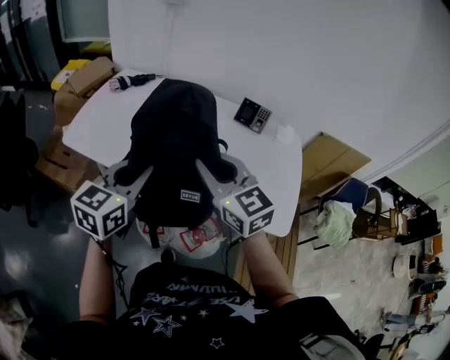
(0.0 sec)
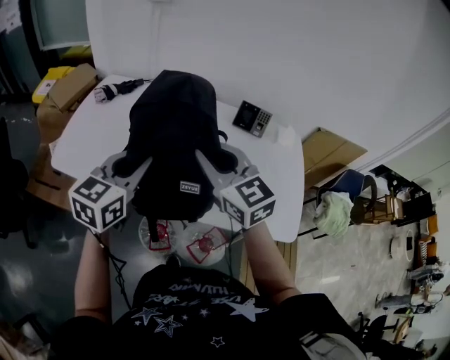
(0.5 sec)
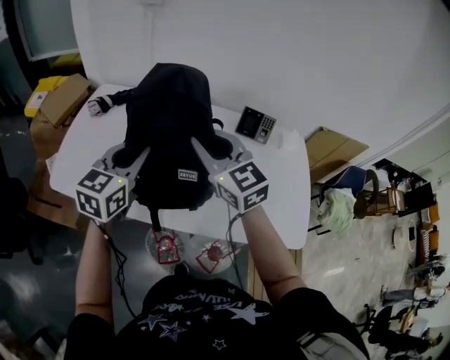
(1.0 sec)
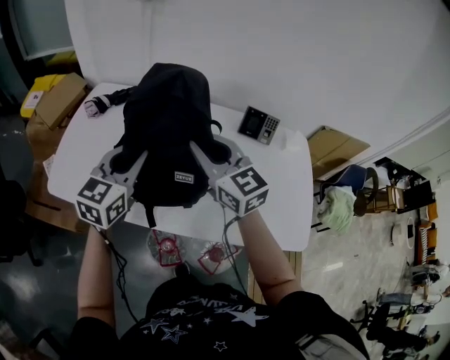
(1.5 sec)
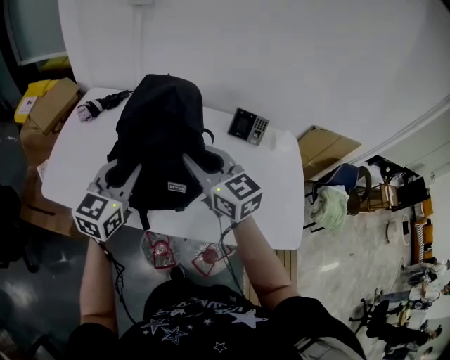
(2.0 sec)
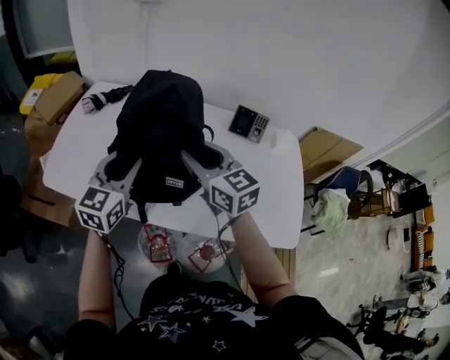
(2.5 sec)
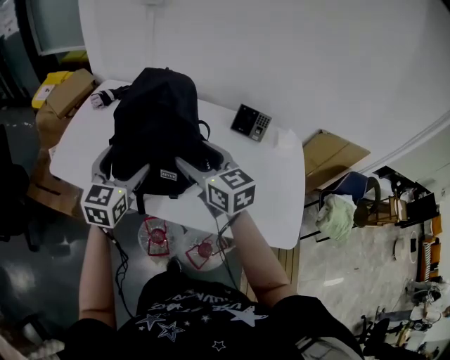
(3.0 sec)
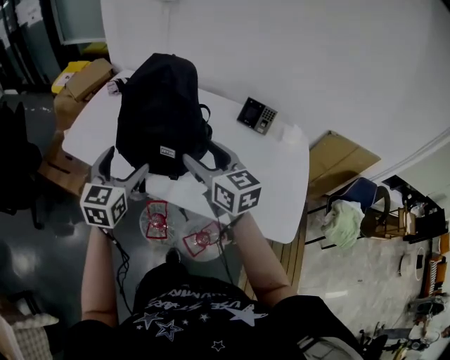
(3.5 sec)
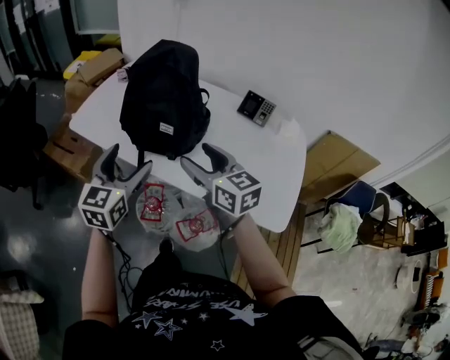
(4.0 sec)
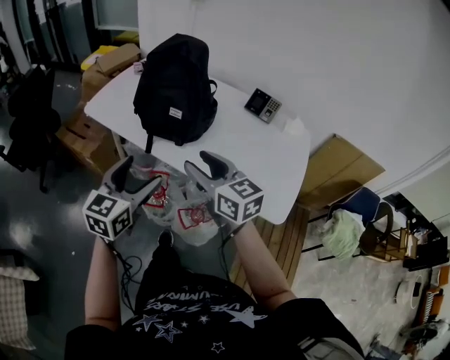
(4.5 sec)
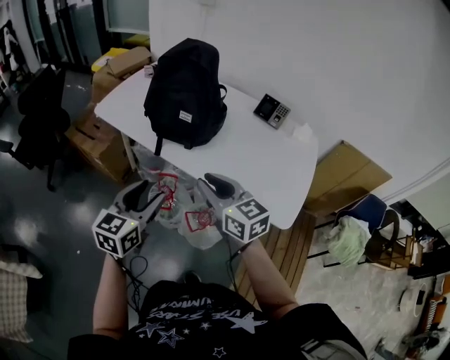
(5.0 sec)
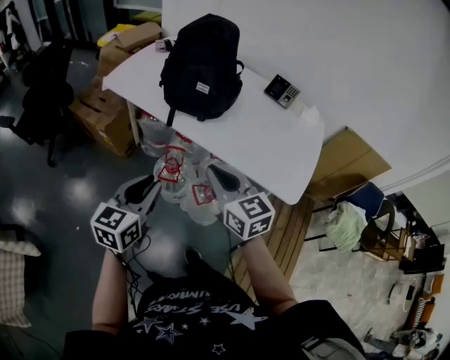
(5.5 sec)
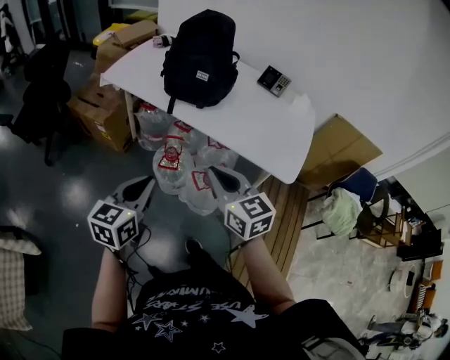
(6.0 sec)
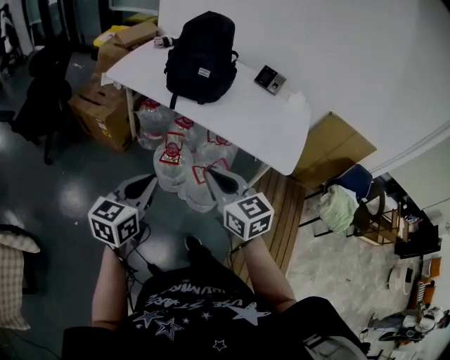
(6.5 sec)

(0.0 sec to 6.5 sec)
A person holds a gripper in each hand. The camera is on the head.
0.0 sec - 2.0 sec: Both grippers move forward, approximately 20 cm.
2.0 sec - 4.5 sec: Both grippers move backward, approximately 35 cm. The left gripper turns by roughly 20 degrees, and opens. Meanwhile the right gripper opens its fingers.
4.5 sec - 6.5 sec: Both grippers travel together backward, some 25 cm. The left gripper closes its fingers. Meanwhile the right gripper closes up.

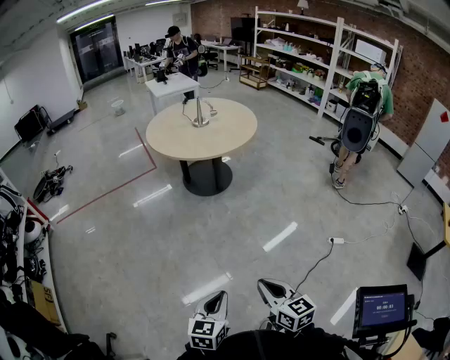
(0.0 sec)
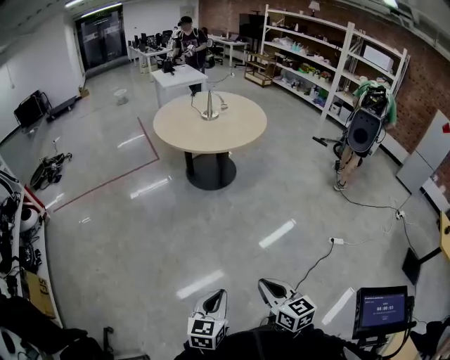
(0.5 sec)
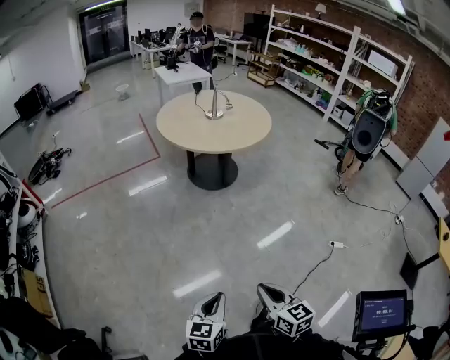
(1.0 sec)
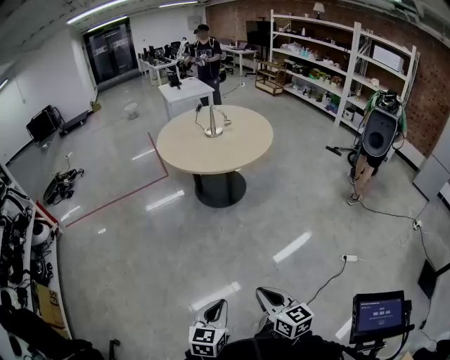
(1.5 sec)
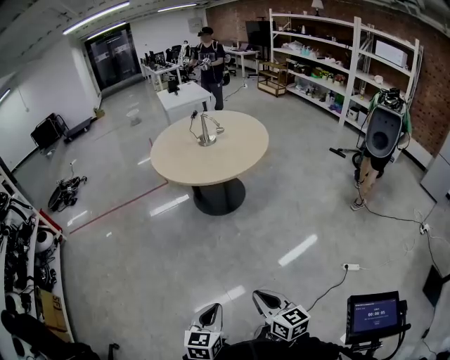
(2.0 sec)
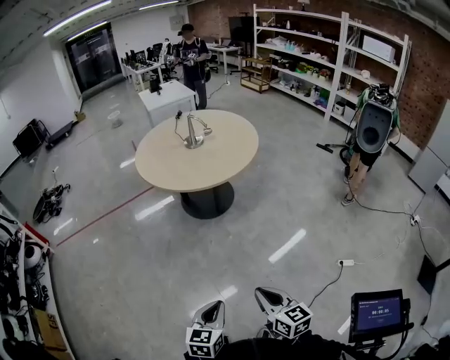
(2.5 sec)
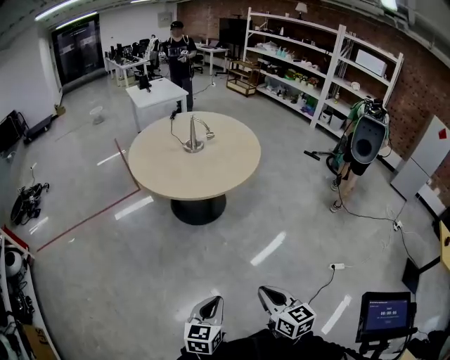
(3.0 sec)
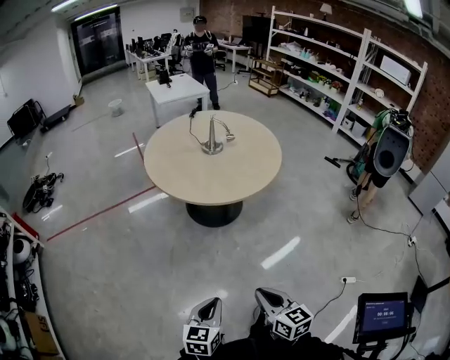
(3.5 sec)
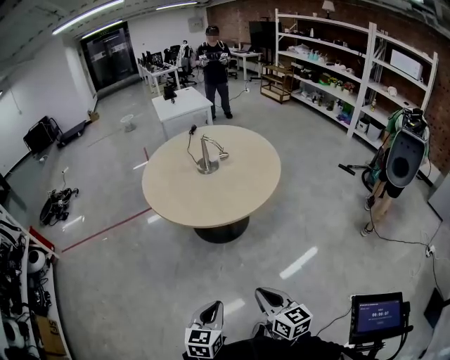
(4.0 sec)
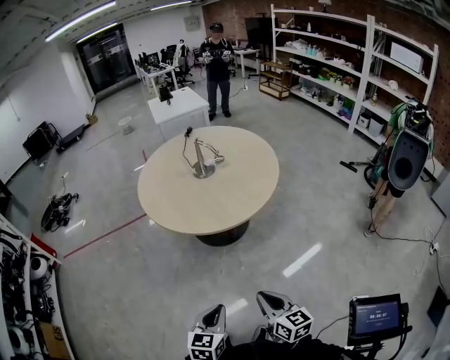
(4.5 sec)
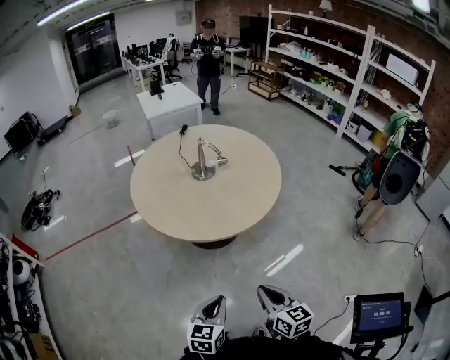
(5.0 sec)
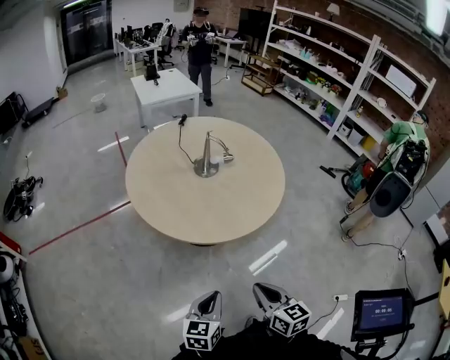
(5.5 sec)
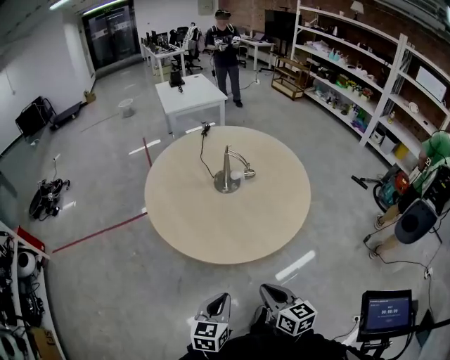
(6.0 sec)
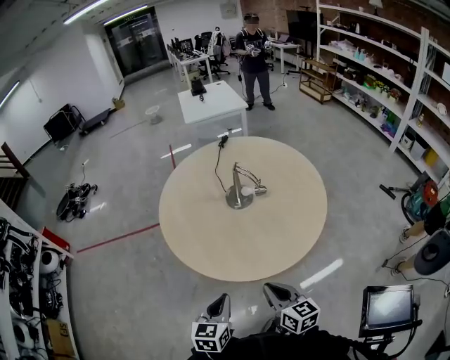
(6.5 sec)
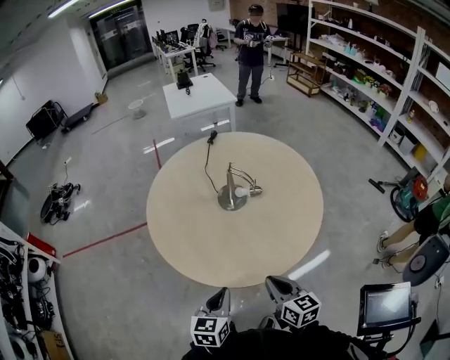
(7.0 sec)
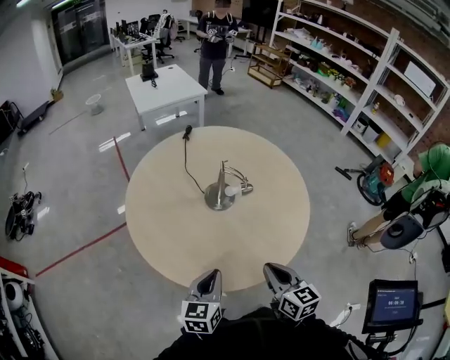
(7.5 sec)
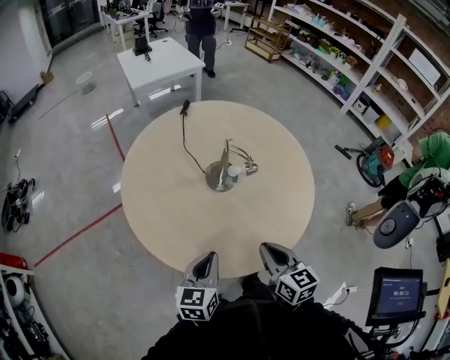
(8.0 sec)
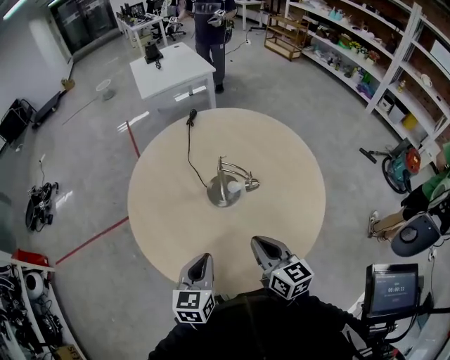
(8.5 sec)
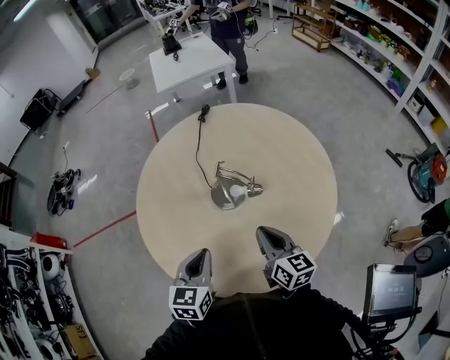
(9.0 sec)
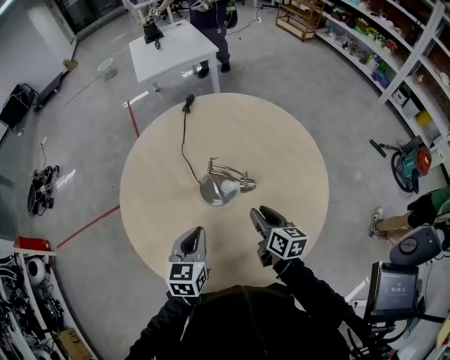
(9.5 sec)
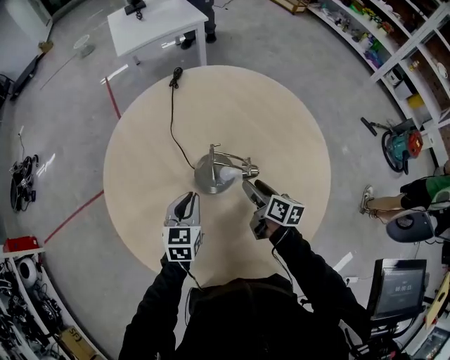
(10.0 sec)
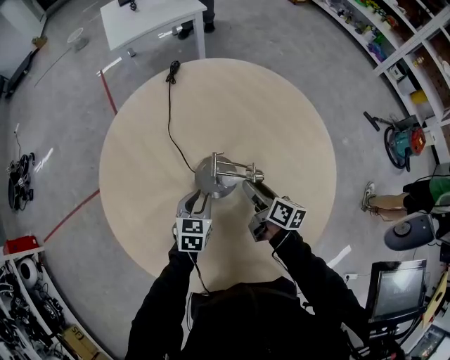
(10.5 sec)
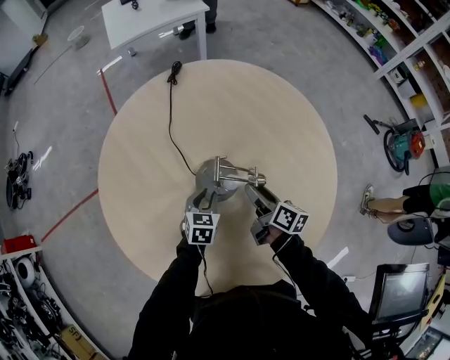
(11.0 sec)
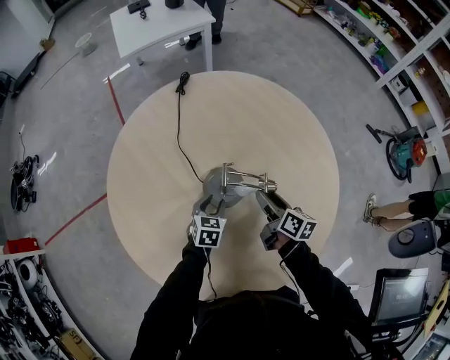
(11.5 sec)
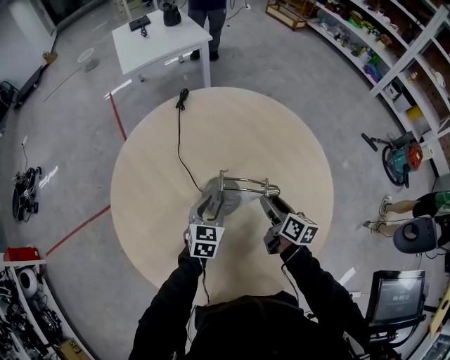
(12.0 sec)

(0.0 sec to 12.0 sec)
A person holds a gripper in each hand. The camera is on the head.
0.0 sec - 2.0 sec: The two grippers go about 15 cm forward and to the right.
2.0 sec - 4.0 sec: Both grippers travel together forward, about 30 cm.
4.0 sec - 6.0 sec: Both grippers move forward, approximately 25 cm.
6.0 sec - 8.0 sec: Both grippers travel together forward, some 25 cm.
8.0 sec - 10.0 sec: The left gripper shifts roughly 25 cm forward; the right gripper shifts roughly 35 cm forward and downward, changes its angle by about 30 degrees, and opens up.
10.0 sec - 12.0 sec: The left gripper is displaced to the right by approximately 5 cm, goes downward and returns, roughly 15 cm each way, and opens.

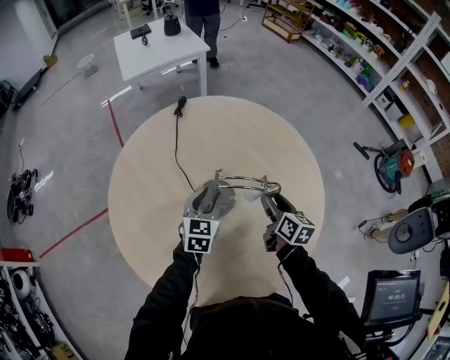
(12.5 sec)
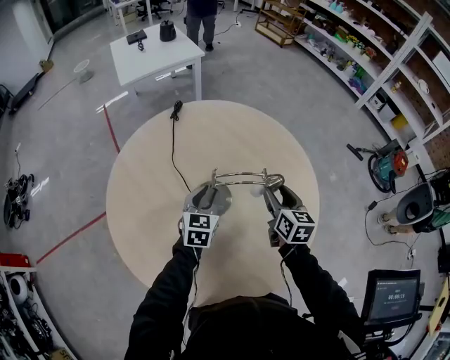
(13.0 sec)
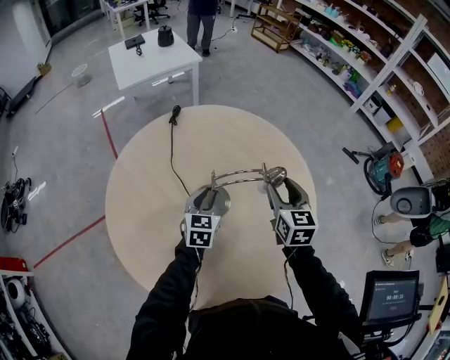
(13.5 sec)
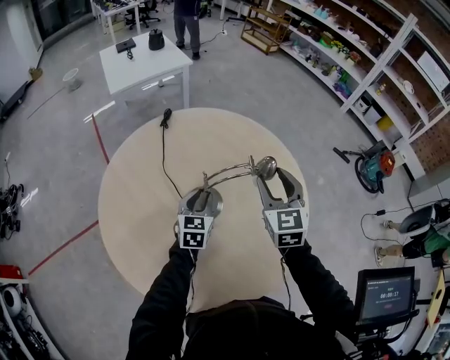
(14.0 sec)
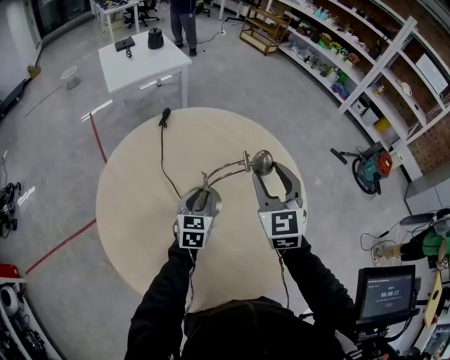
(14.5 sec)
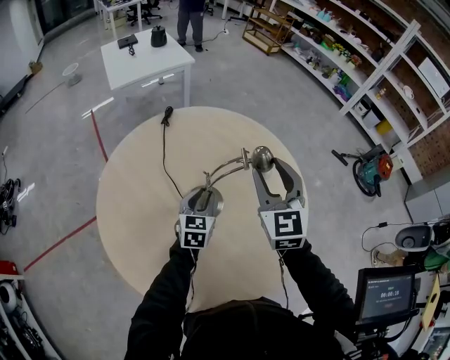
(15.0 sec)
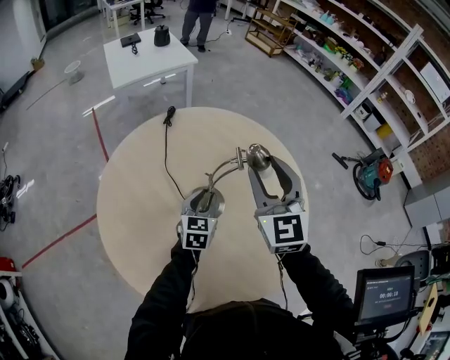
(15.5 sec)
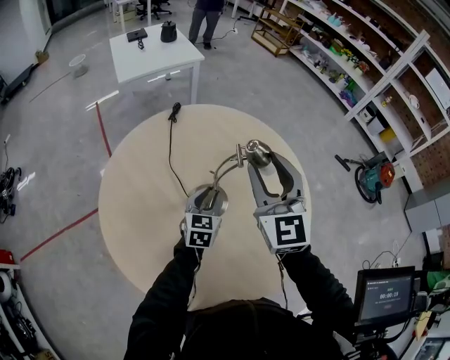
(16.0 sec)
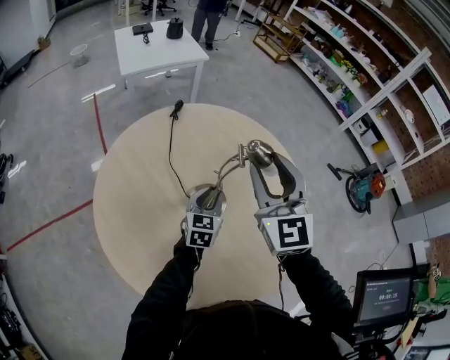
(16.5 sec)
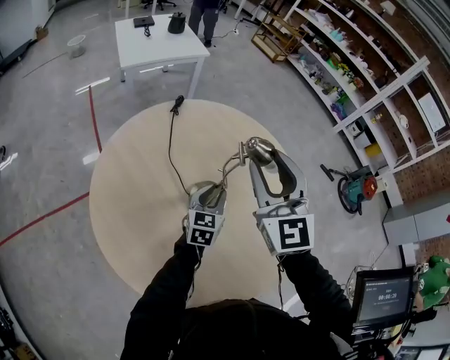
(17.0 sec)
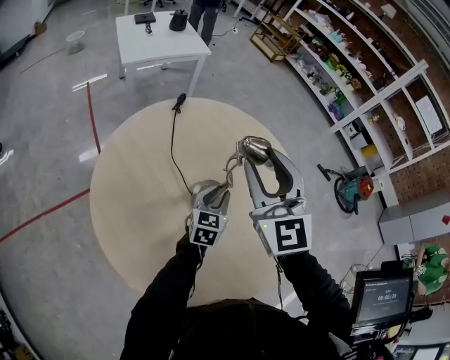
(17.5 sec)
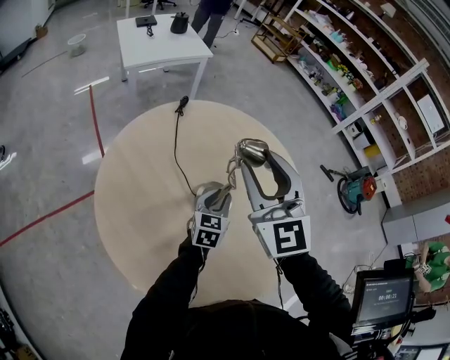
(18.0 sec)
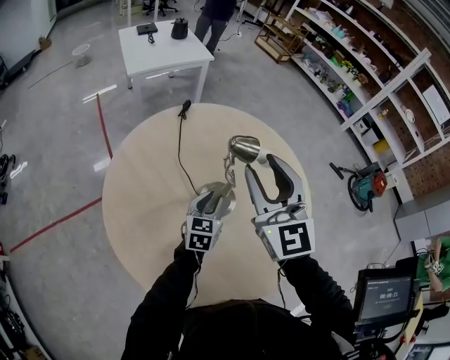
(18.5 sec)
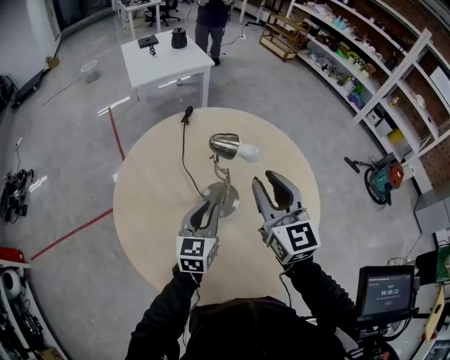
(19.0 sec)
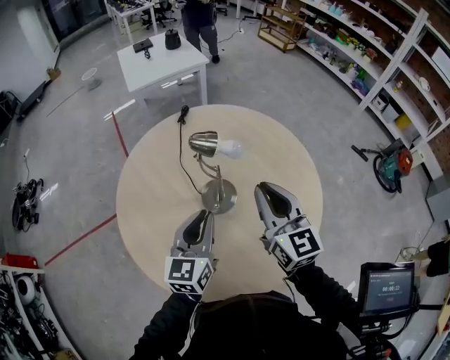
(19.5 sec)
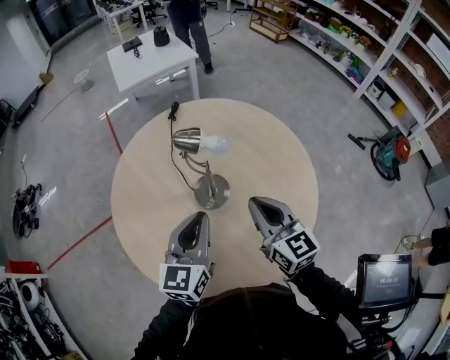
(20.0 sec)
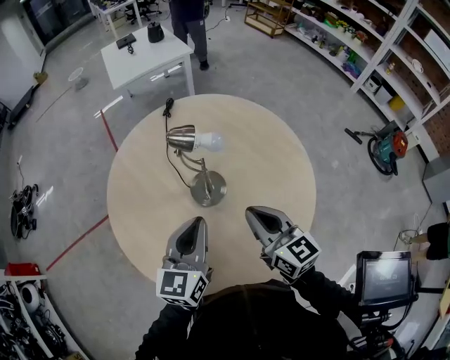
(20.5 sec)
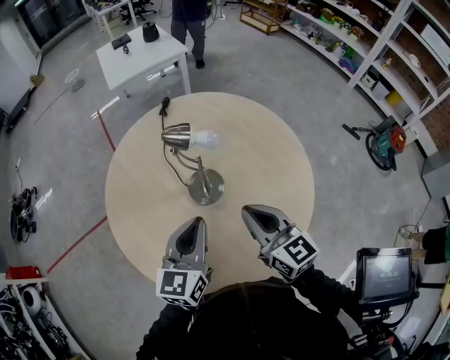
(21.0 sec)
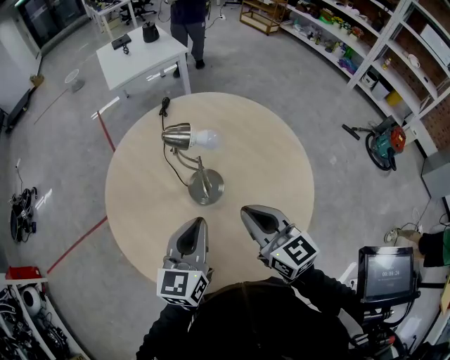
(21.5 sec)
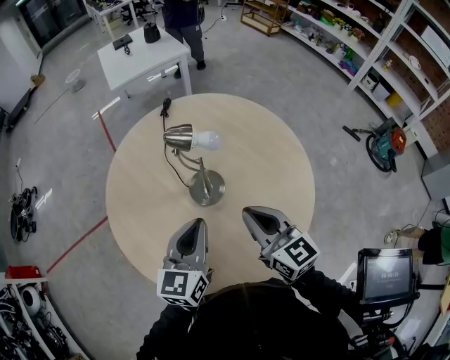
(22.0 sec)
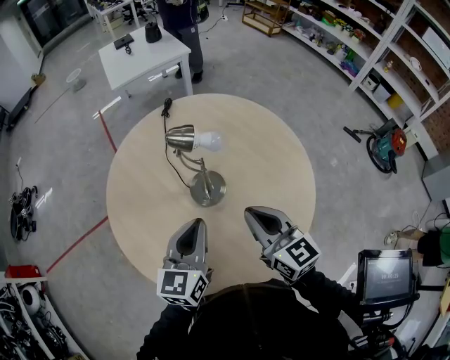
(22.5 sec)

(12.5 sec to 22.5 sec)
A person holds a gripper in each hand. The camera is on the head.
12.5 sec - 14.5 sec: The right gripper heads upward, covering some 20 cm, and twists some 60 degrees counterclockwise, seen from behind.
14.5 sec - 16.5 sec: The right gripper travels to the left and upward by approximately 10 cm.
16.5 sec - 18.5 sec: The right gripper is displaced to the left by approximately 5 cm.
18.5 sec - 20.5 sec: The right gripper travels downward, backward and to the right by approximately 20 cm, rotates some 40 degrees, and closes. Meanwhile the left gripper shifts roughly 20 cm upward and backward, and closes its fingers.
20.5 sec - 22.5 sec: Both grippers stay about where they are.
